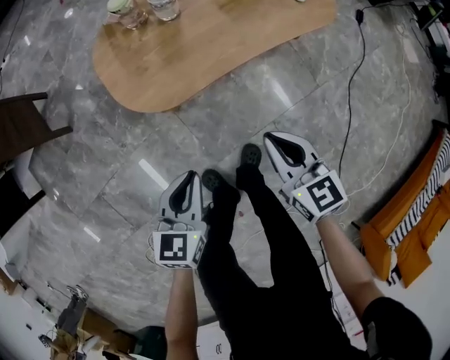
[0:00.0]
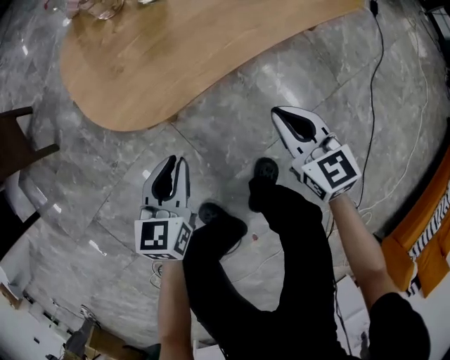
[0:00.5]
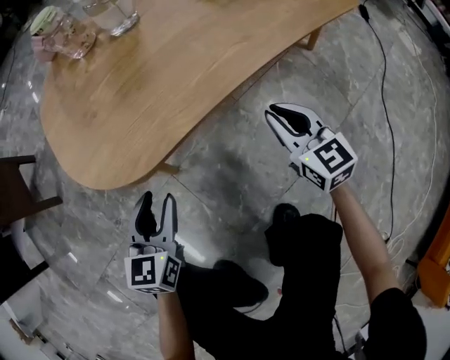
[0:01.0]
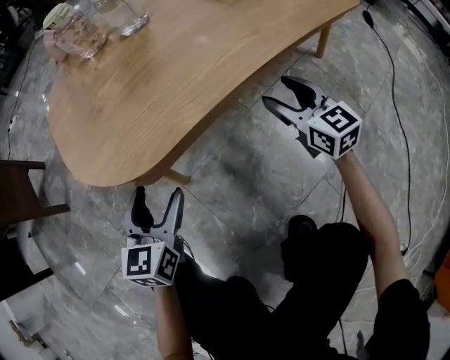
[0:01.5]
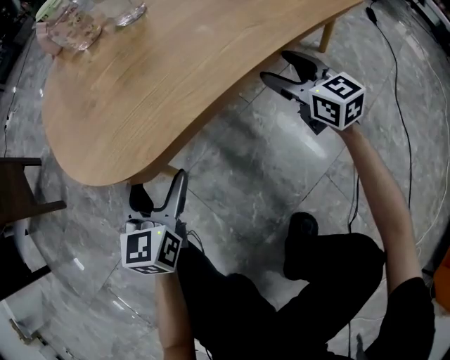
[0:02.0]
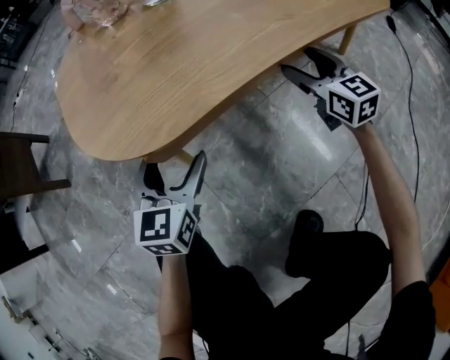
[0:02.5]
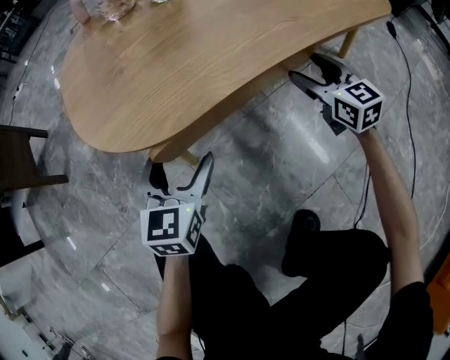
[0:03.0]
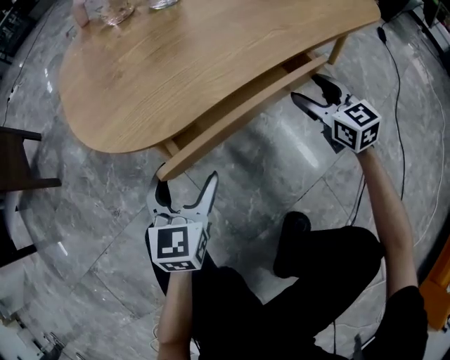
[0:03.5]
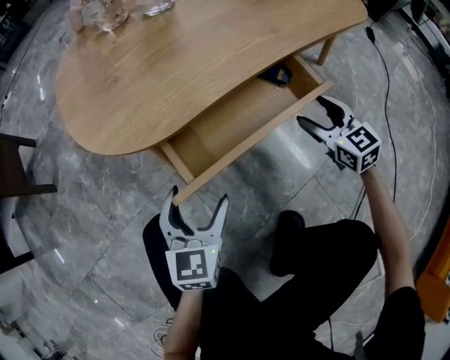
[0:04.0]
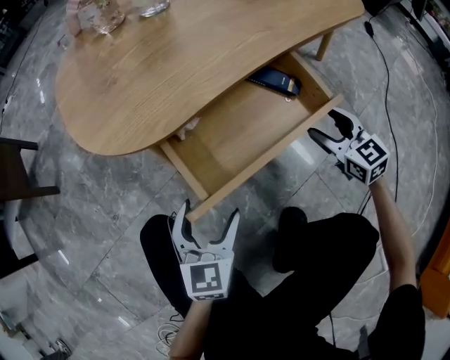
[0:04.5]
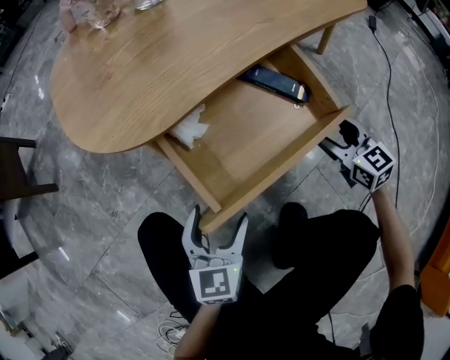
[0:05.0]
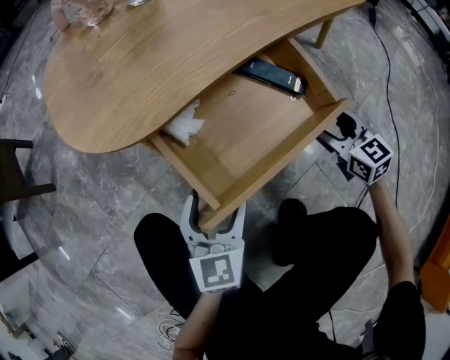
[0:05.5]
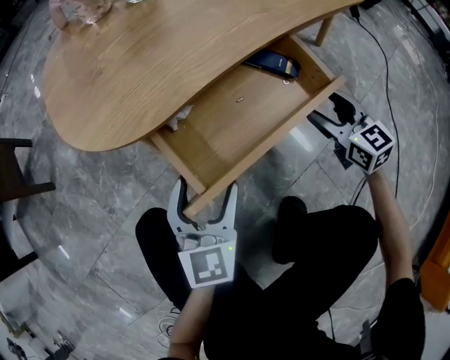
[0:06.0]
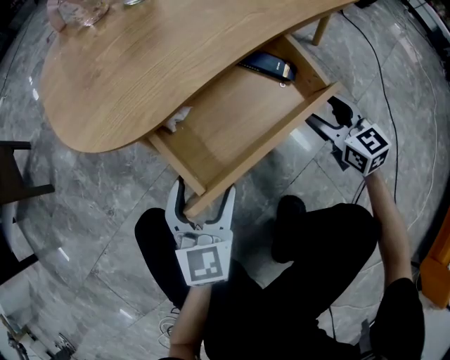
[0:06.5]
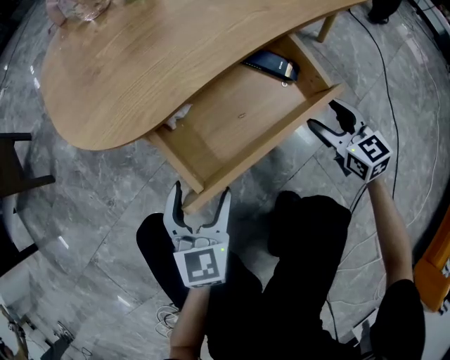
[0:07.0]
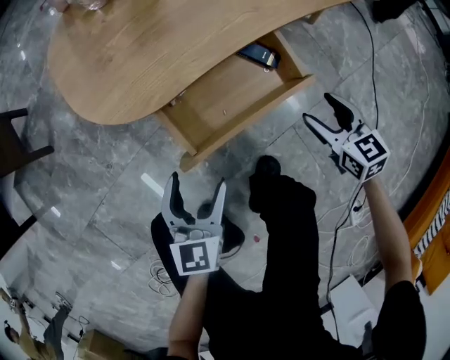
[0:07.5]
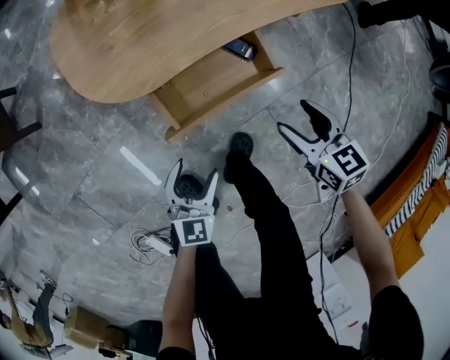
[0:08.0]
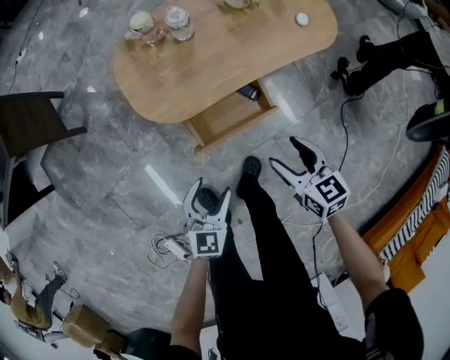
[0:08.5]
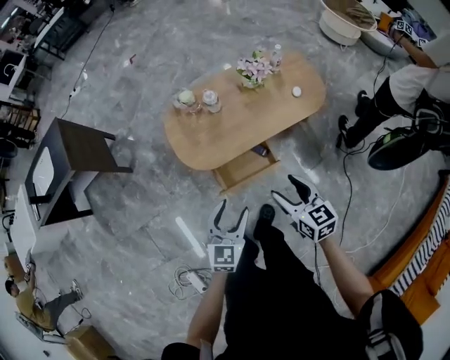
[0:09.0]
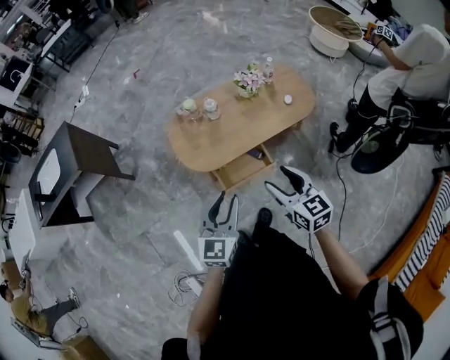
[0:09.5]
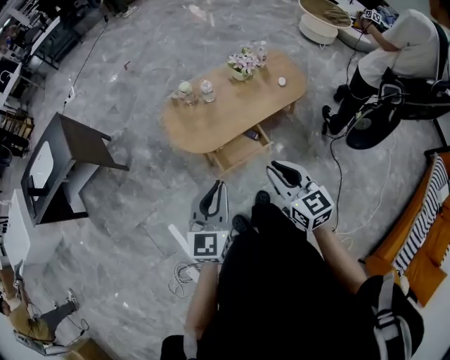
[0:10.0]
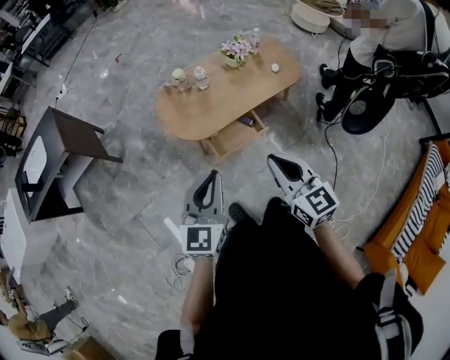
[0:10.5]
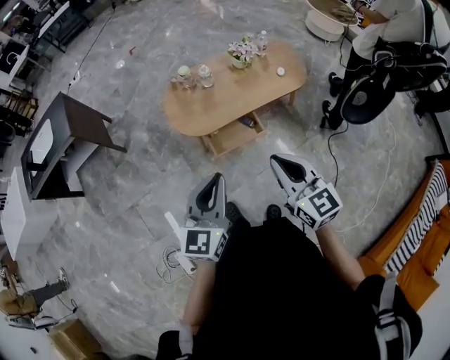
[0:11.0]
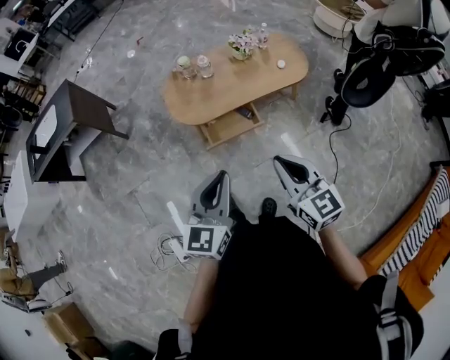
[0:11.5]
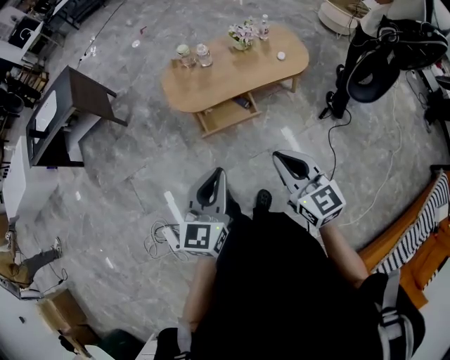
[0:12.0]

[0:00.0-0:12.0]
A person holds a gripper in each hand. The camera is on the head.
0:00.0 to 0:02.0: The grippers both shift downward and forward by roughly 40 cm. The right gripper opens up. Meanwhile the left gripper opens up.
0:02.0 to 0:04.0: The grippers both shift backward by approximately 10 cm.
0:06.0 to 0:08.0: Both grippers travel together upward and backward, about 20 cm. The right gripper turns by some 20 degrees.
0:08.0 to 0:10.0: The grippers both shift upward by approximately 50 cm. The right gripper rotates some 20 degrees, and closes up. The left gripper changes its angle by approximately 20 degrees, and closes its fingers.
0:10.0 to 0:12.0: The grippers both shift backward and to the right by roughly 20 cm.

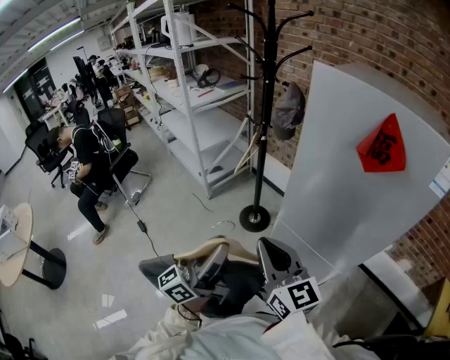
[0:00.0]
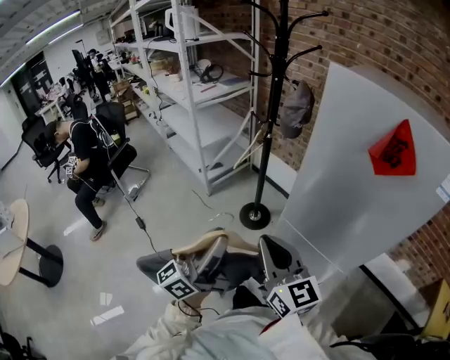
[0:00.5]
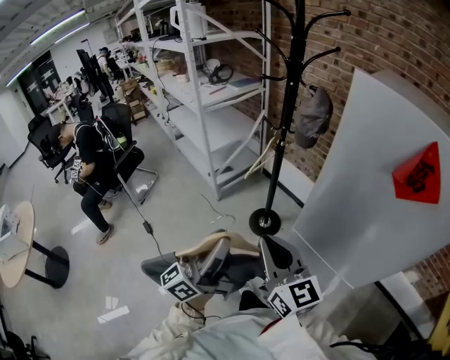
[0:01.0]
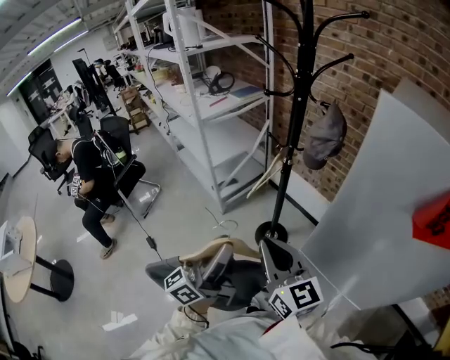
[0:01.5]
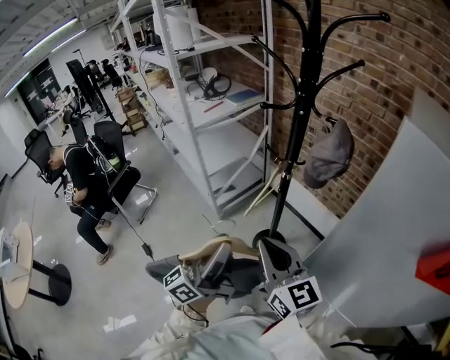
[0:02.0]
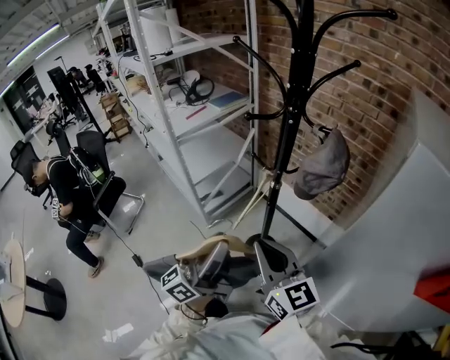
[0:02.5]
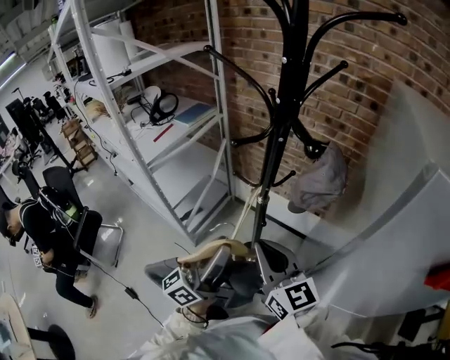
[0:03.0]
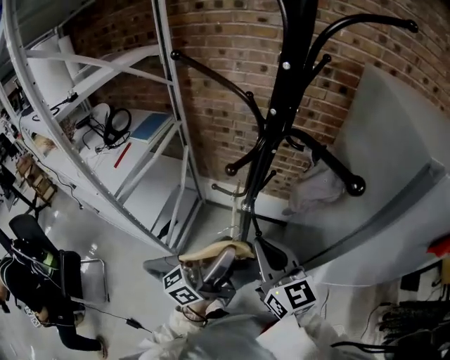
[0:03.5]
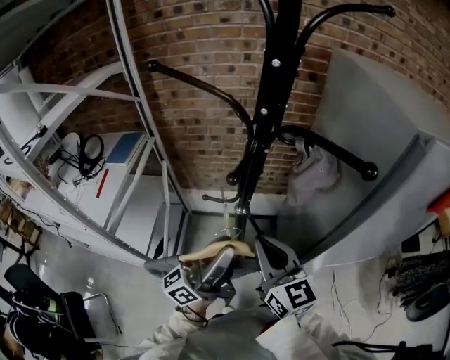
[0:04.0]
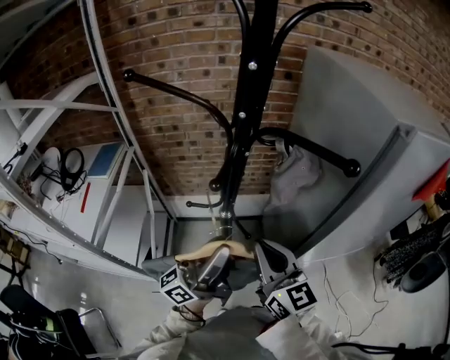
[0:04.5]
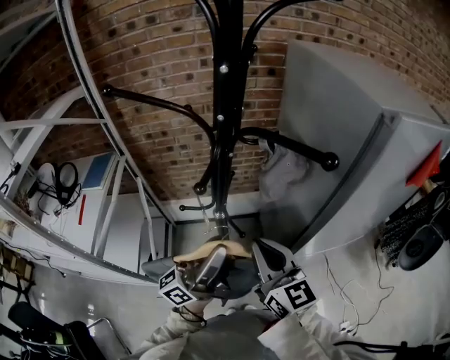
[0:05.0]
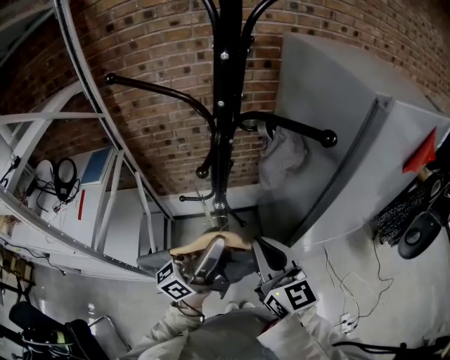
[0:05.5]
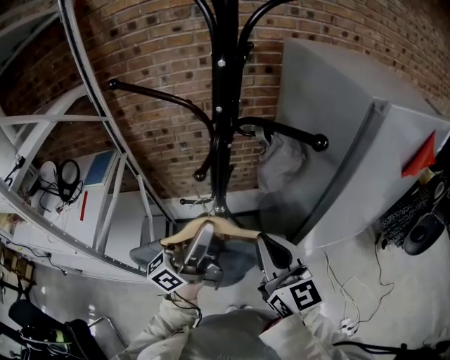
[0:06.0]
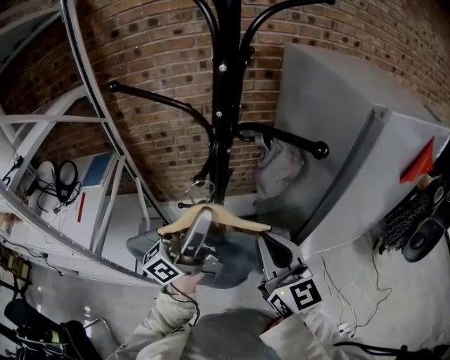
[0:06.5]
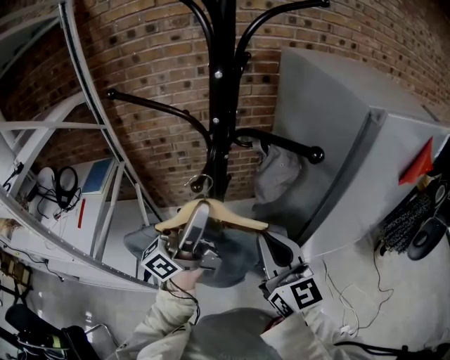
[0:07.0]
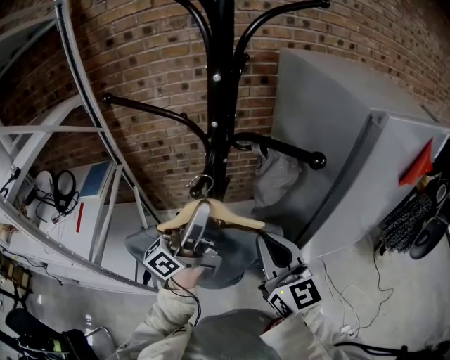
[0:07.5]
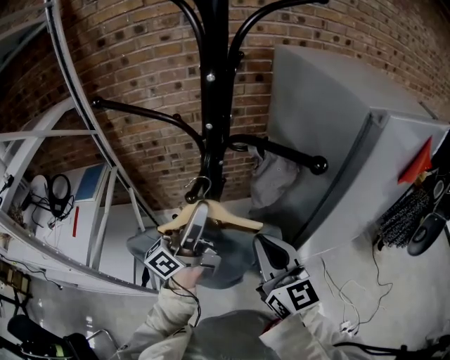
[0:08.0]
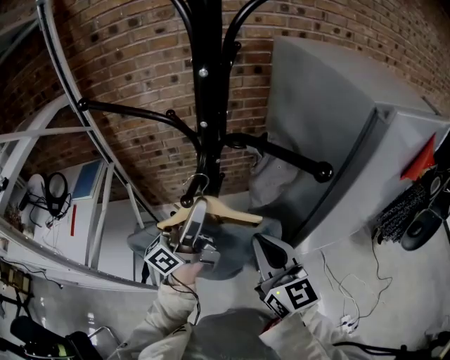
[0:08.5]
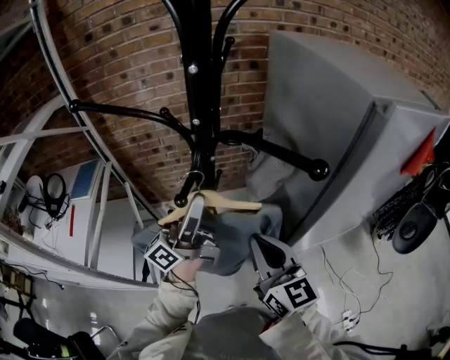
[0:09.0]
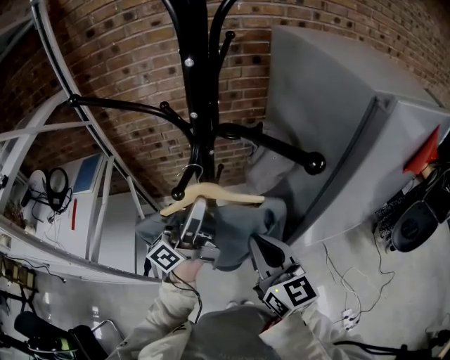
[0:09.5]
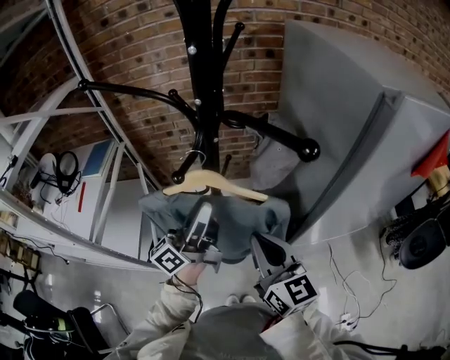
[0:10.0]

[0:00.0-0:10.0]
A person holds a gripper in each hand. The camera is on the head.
0:00.0 to 0:02.0: Both grippers move forward, about 30 cm.
0:02.0 to 0:04.0: The left gripper ends up approximately 30 cm from where it was, and changes its angle by some 50 degrees; the right gripper changes place by about 25 cm, and swivels approximately 50 degrees.
0:04.0 to 0:06.0: The right gripper moves to the right, roughly 5 cm. Meanwhile the left gripper heads upward, covering roughly 5 cm.
0:06.0 to 0:08.0: The left gripper shifts about 10 cm forward.
0:08.0 to 0:10.0: The left gripper shifts about 5 cm downward.

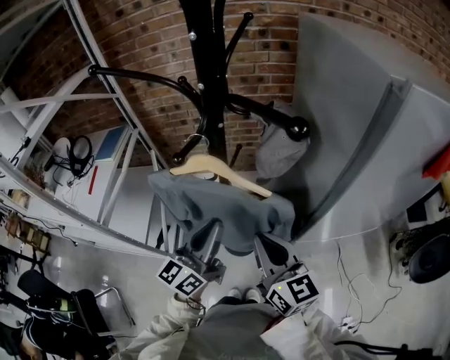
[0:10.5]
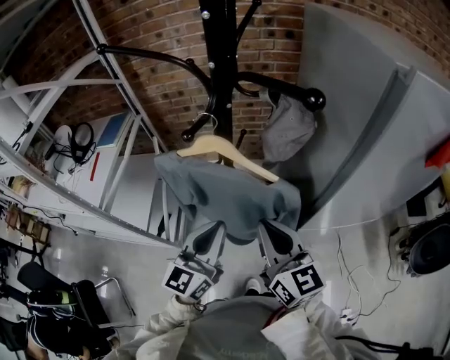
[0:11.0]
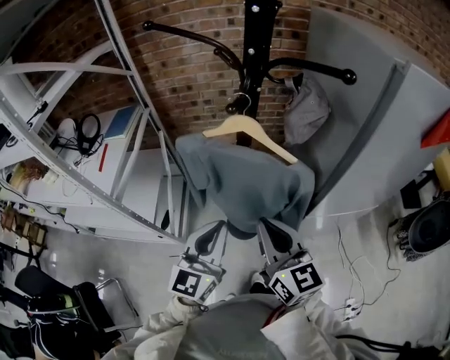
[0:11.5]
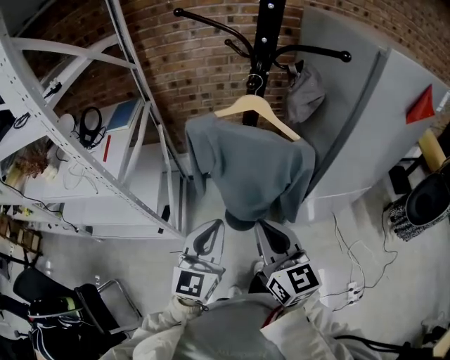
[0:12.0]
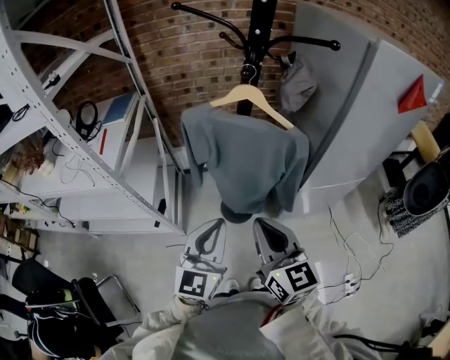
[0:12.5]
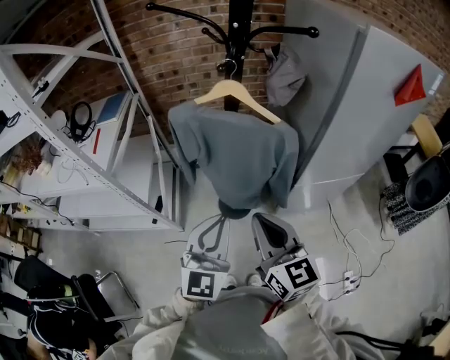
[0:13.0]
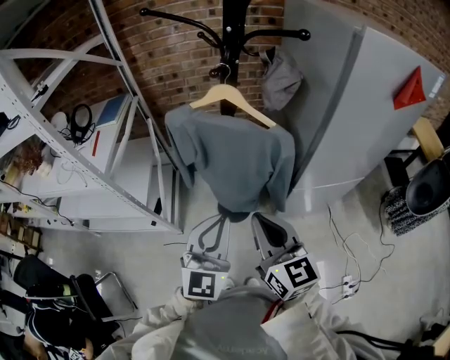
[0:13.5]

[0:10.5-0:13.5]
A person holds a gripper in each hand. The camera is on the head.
0:10.5 to 0:12.0: Both grippers travel together backward and to the left, roughly 25 cm. The left gripper changes its angle by approximately 30 degrees.
0:12.0 to 0:13.5: The two grippers go approximately 10 cm to the right.

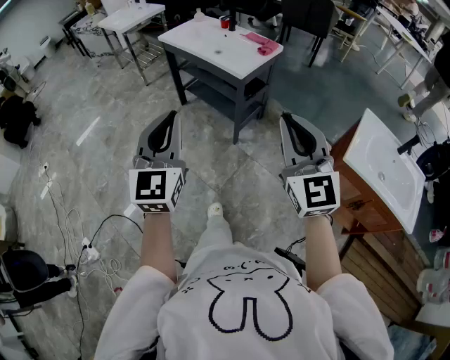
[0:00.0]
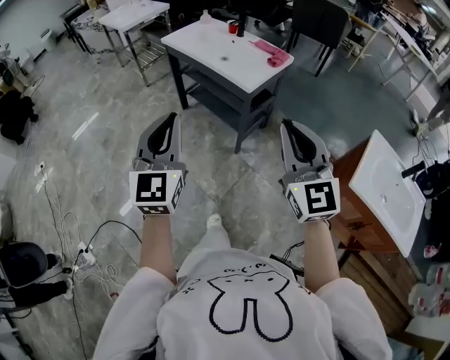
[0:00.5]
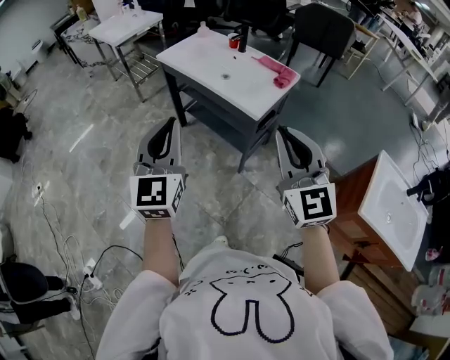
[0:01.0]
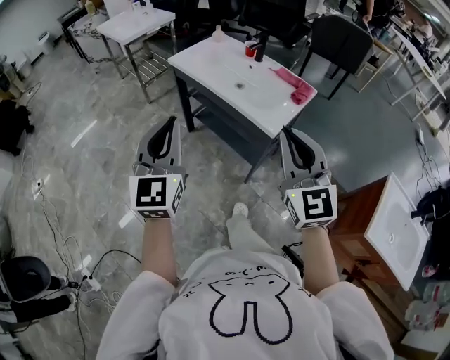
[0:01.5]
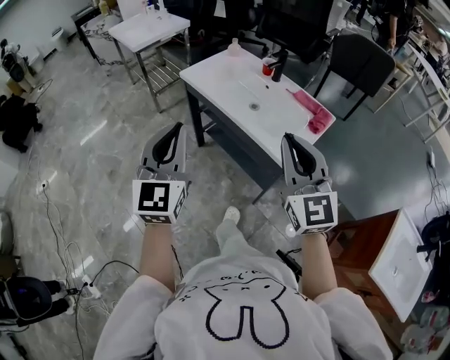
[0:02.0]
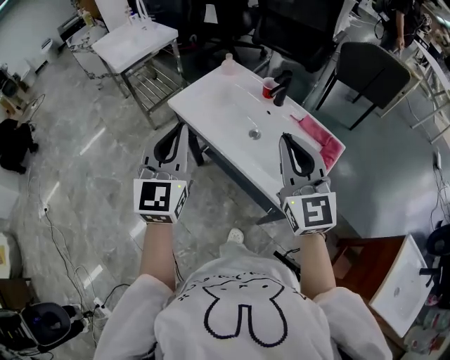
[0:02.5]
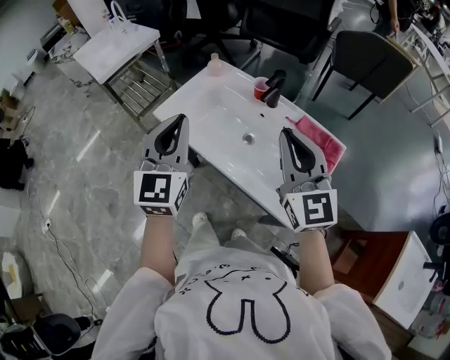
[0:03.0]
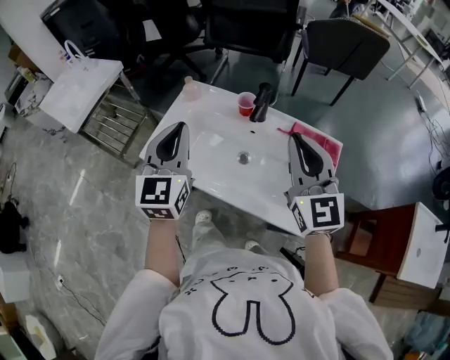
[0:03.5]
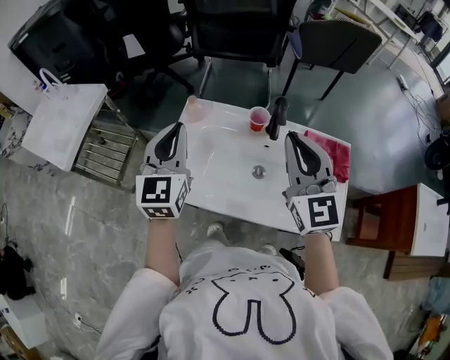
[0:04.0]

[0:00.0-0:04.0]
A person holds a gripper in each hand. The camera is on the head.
0:00.0 to 0:02.0: The two grippers travel together, forward, roughly 40 cm.
0:02.0 to 0:04.0: The pair of grippers is taken about 50 cm. The right gripper swivels roughly 30 degrees. The left gripper swivels about 30 degrees.
